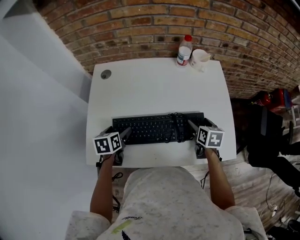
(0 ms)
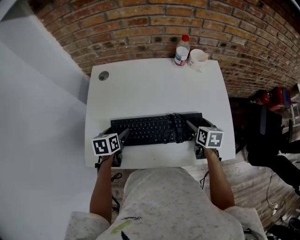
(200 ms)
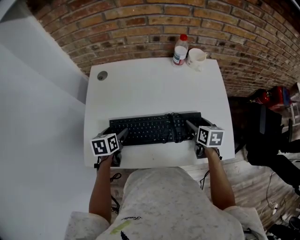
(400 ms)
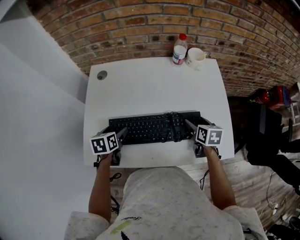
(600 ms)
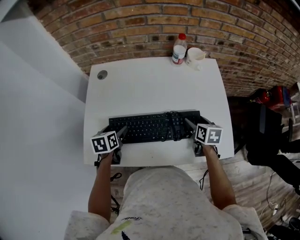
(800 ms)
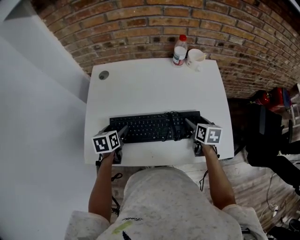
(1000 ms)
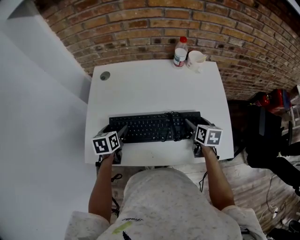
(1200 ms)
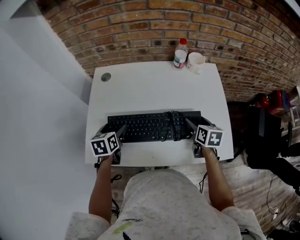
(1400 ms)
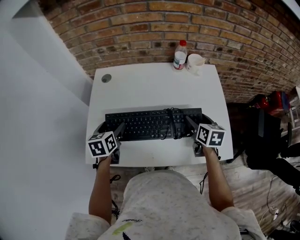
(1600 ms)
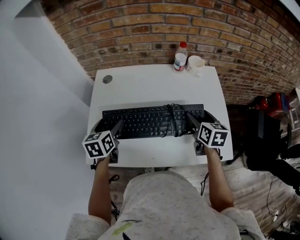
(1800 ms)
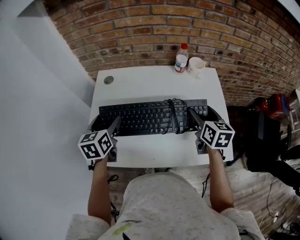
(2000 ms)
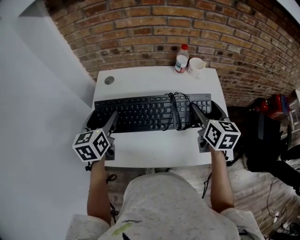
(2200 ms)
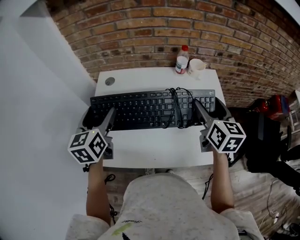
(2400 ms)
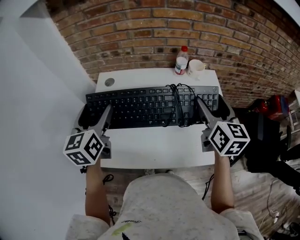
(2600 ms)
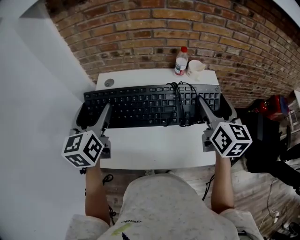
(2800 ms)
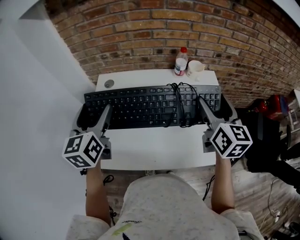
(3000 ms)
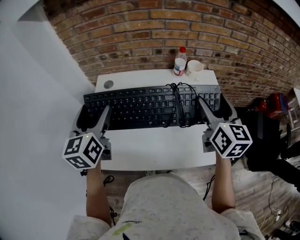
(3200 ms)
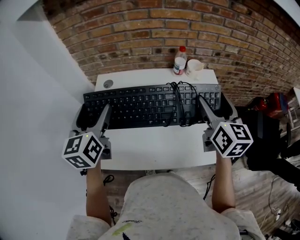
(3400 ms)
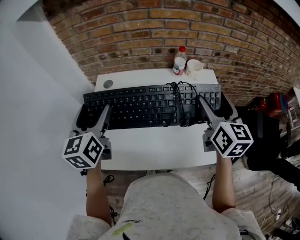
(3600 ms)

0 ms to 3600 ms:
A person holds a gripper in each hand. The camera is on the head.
0 ms to 1800 ms: The two grippers go about 10 cm upward.
1800 ms to 3600 ms: The grippers both shift upward by about 20 cm. The right gripper changes its angle by some 20 degrees. Meanwhile the left gripper turns by some 20 degrees.

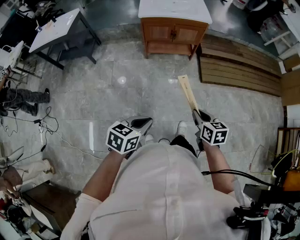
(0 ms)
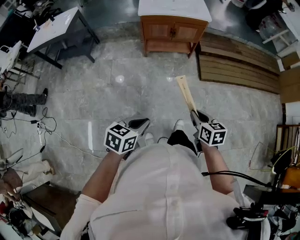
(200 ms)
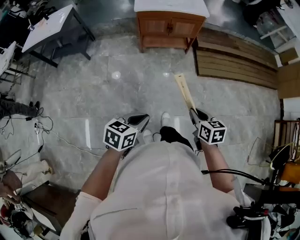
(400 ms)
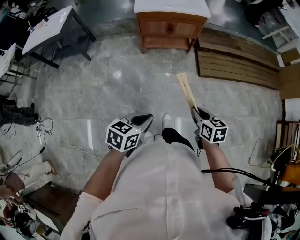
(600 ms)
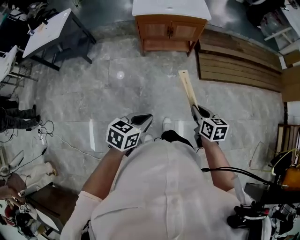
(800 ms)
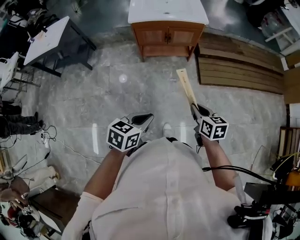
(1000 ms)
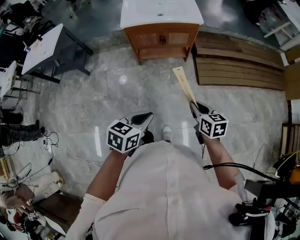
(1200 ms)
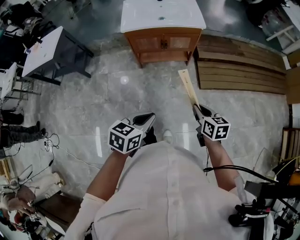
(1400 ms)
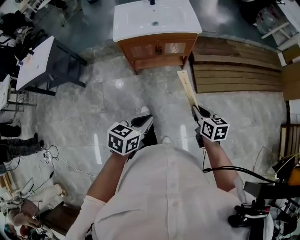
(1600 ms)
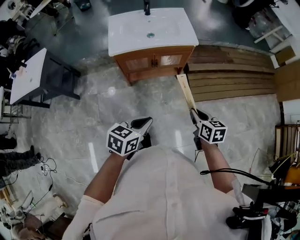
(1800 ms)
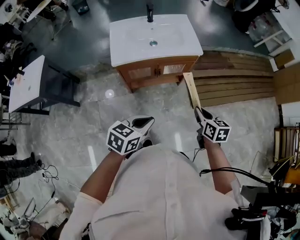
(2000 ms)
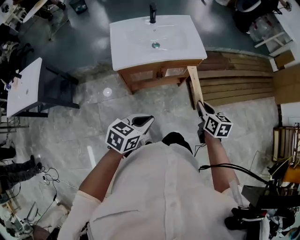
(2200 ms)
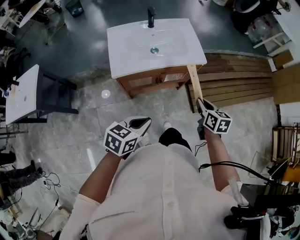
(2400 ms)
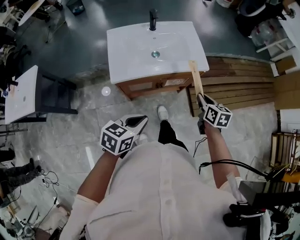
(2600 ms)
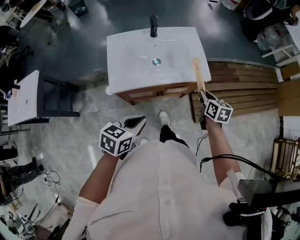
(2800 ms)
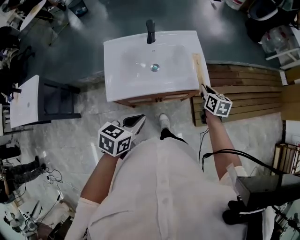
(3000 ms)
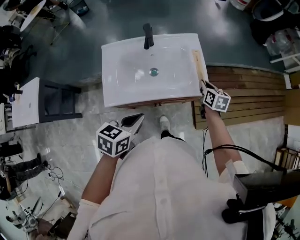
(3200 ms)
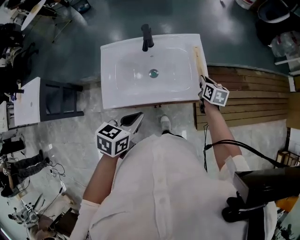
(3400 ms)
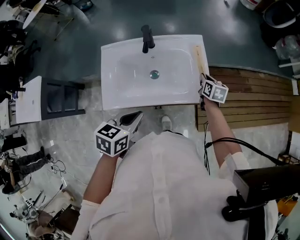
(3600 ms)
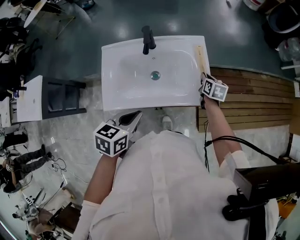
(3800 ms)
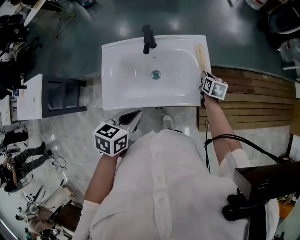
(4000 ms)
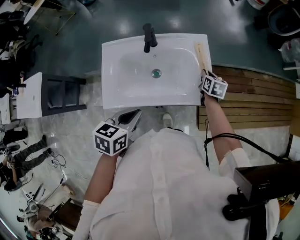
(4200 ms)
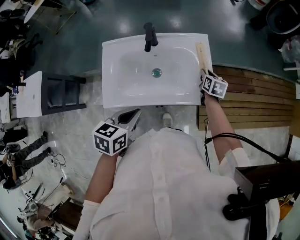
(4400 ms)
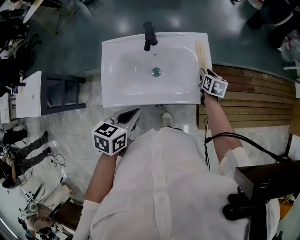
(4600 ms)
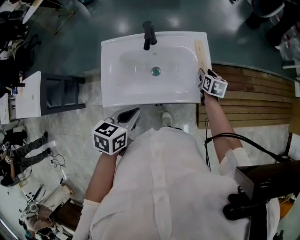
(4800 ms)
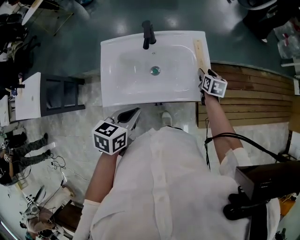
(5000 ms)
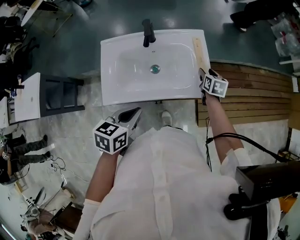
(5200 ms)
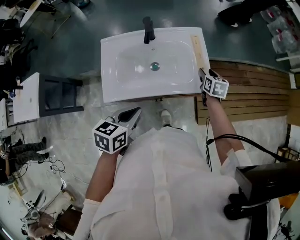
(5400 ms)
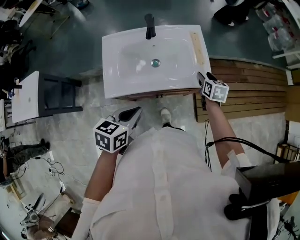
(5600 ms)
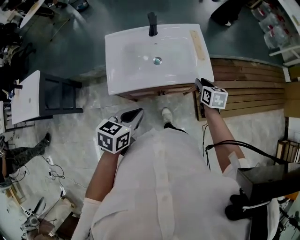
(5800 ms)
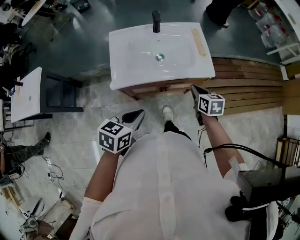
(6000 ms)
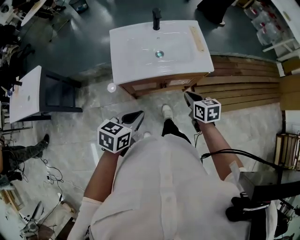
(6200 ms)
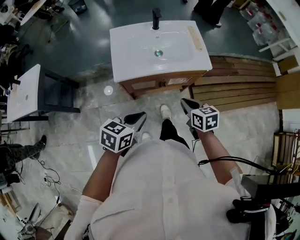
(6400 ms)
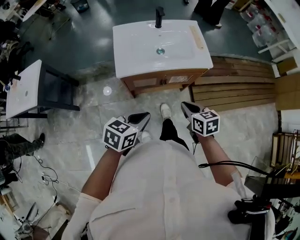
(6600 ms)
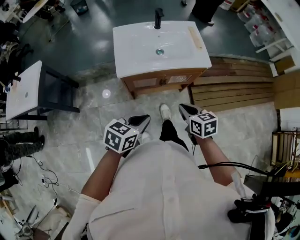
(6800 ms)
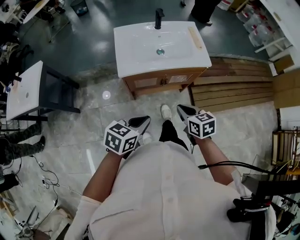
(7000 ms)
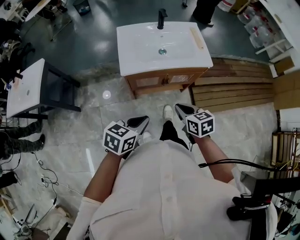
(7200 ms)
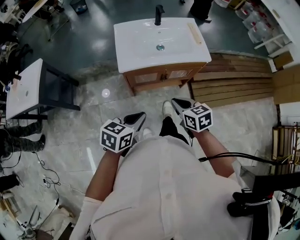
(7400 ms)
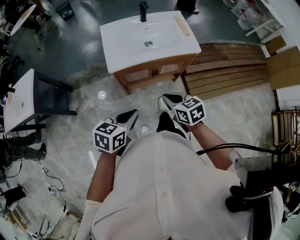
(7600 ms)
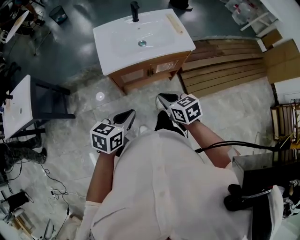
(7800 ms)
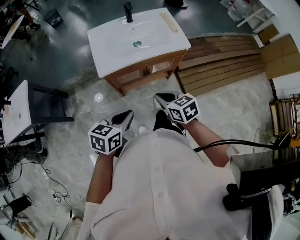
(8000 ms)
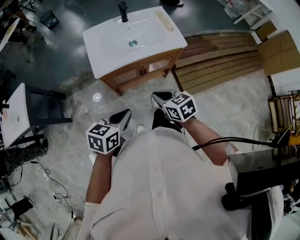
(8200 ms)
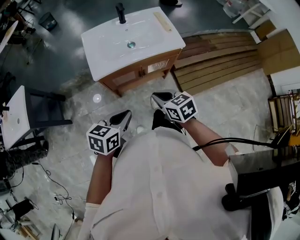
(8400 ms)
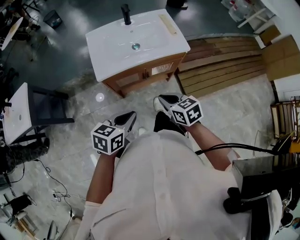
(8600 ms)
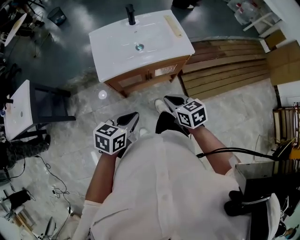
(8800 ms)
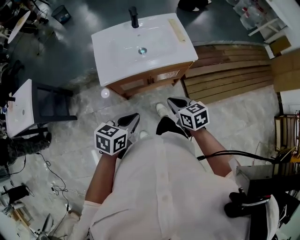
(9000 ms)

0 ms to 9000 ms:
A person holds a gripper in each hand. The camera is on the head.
0 ms to 1600 ms: Both grippers move forward, about 30 cm.
1600 ms to 3000 ms: The two grippers travel together, forward, approximately 50 cm.
3000 ms to 4400 ms: The right gripper shifts some 20 cm forward and downward, while the left gripper moves forward, roughly 10 cm.
4400 ms to 6000 ms: The right gripper moves backward, about 30 cm, and closes, while the left gripper moves backward, roughly 15 cm.
6000 ms to 7600 ms: The right gripper travels backward and to the left by about 25 cm. Meanwhile the left gripper goes approximately 15 cm backward.
7600 ms to 9000 ms: The left gripper goes about 10 cm forward and to the right, while the right gripper travels to the right and forward by some 10 cm.

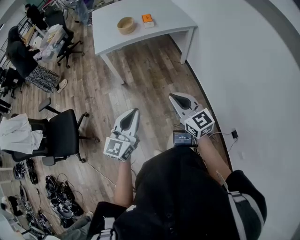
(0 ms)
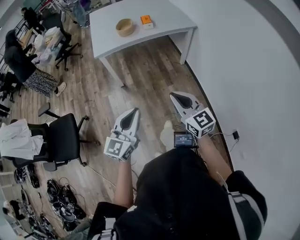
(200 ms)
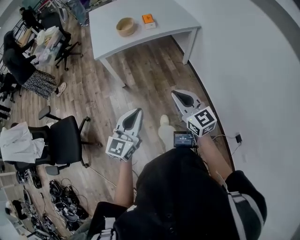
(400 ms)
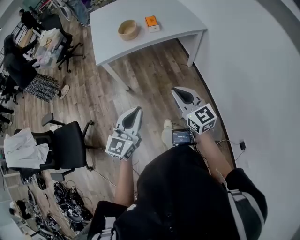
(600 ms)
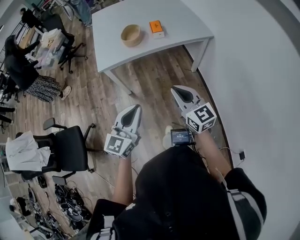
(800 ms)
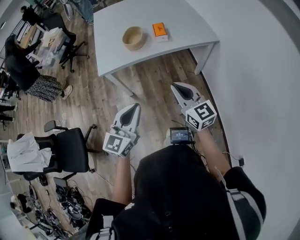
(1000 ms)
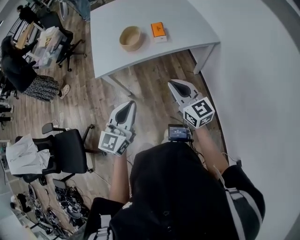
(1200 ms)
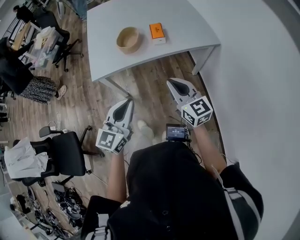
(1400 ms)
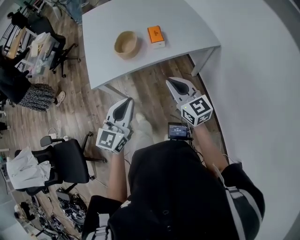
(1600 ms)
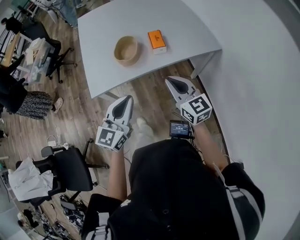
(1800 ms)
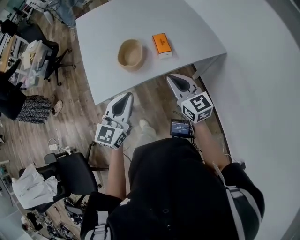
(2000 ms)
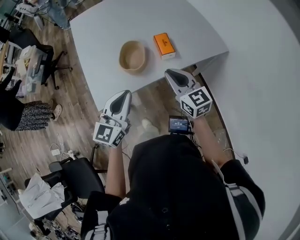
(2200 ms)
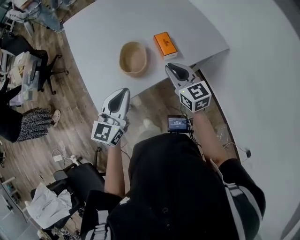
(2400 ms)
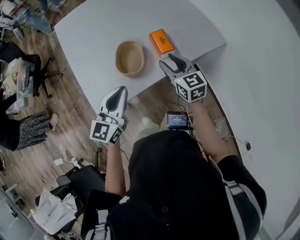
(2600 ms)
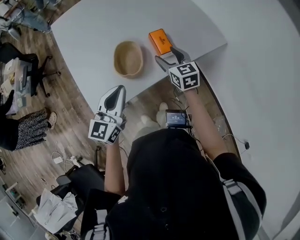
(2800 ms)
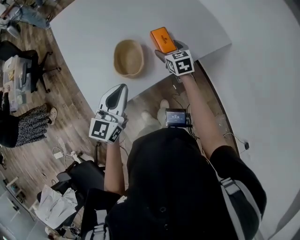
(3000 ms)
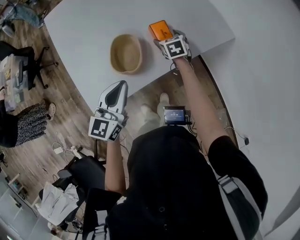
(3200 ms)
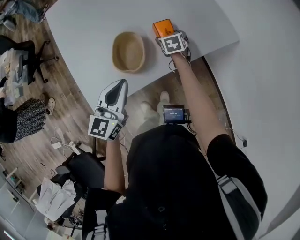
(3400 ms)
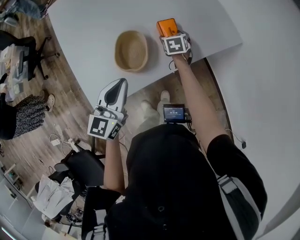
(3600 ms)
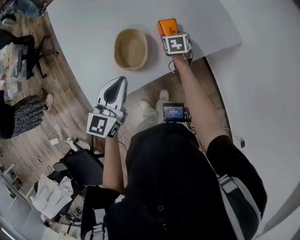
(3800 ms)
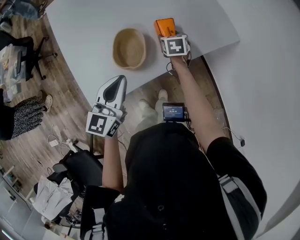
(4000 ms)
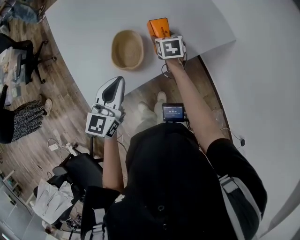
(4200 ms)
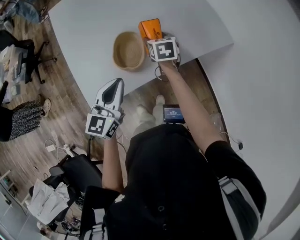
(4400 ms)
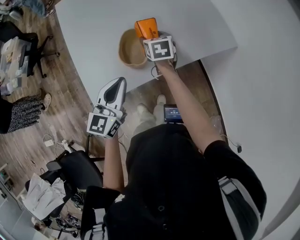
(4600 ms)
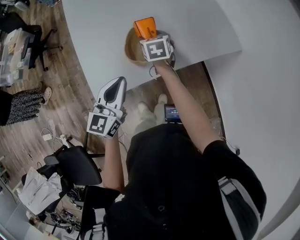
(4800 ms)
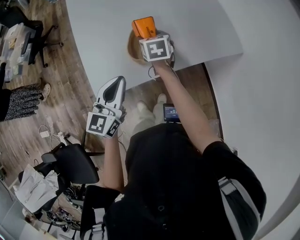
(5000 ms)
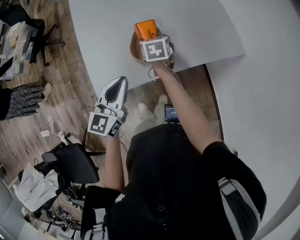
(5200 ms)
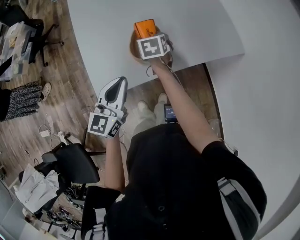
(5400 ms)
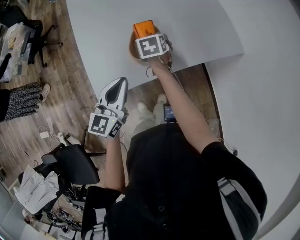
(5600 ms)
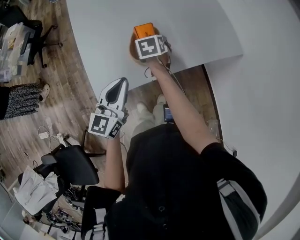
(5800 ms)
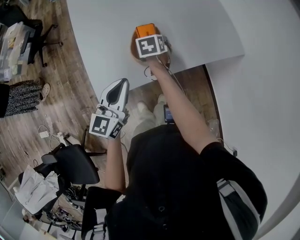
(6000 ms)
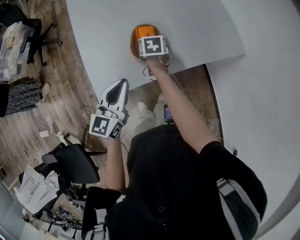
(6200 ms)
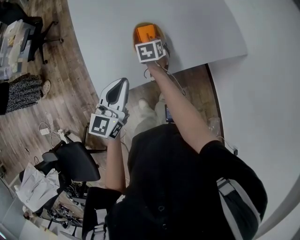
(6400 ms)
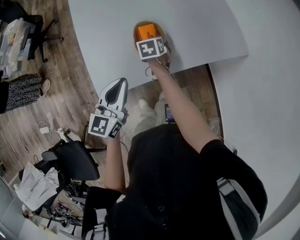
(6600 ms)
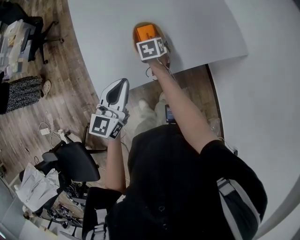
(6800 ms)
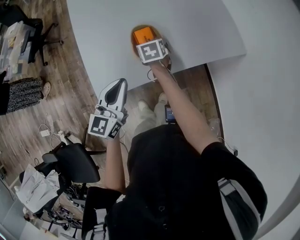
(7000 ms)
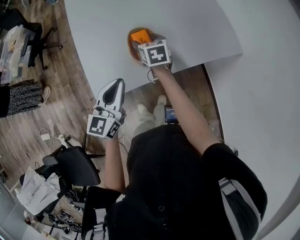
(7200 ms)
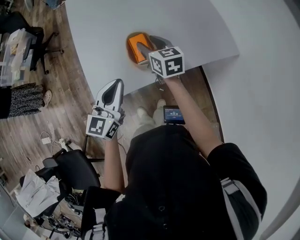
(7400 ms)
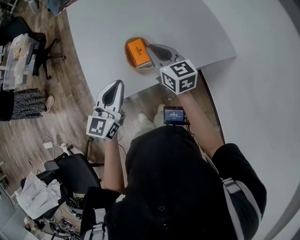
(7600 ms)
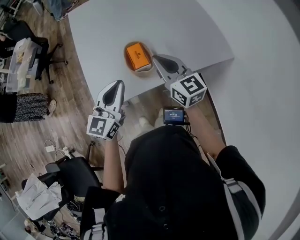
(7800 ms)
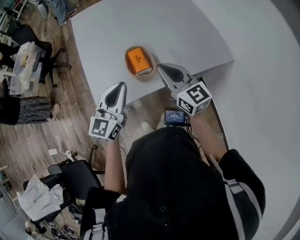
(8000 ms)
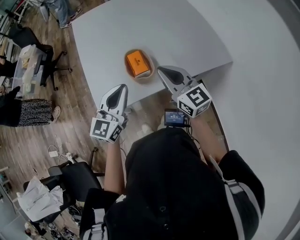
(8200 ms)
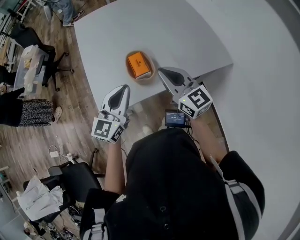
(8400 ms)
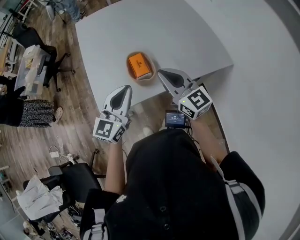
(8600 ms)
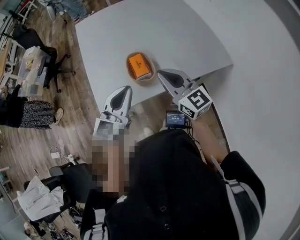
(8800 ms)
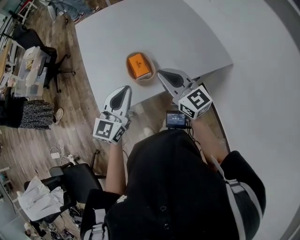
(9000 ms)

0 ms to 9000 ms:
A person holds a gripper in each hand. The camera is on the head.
0 ms to 1600 ms: The pair of grippers is taken forward, roughly 50 cm.
1600 ms to 3000 ms: The left gripper heads forward and to the left, covering about 30 cm, while the right gripper shifts some 40 cm forward and downward, tips its fingers downward by some 30 degrees, and opens.
3000 ms to 4400 ms: The right gripper heads to the left, covering roughly 5 cm, and reaches approximately 10 cm downward, then returns.
4400 ms to 6000 ms: The left gripper shifts roughly 5 cm to the left. Meanwhile the right gripper heads to the left, covering some 10 cm.
6000 ms to 7600 ms: The left gripper ends up some 5 cm from where it was; the right gripper travels upward by some 20 cm, tips its fingers upward by roughly 40 degrees, and closes.
7600 ms to 9000 ms: The right gripper moves backward and upward, roughly 10 cm. Meanwhile the left gripper changes place by some 5 cm.

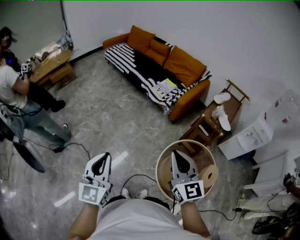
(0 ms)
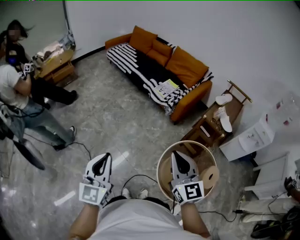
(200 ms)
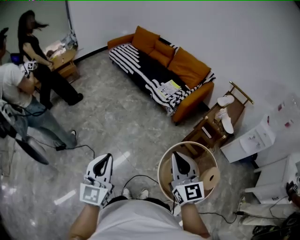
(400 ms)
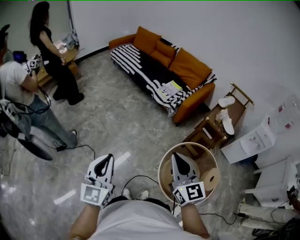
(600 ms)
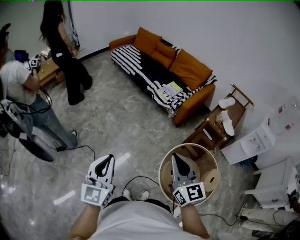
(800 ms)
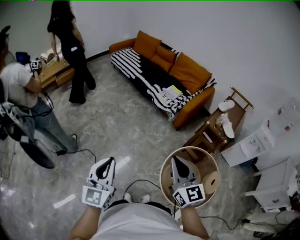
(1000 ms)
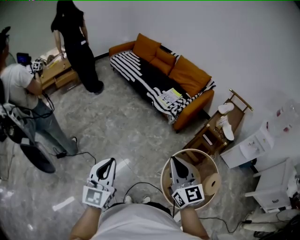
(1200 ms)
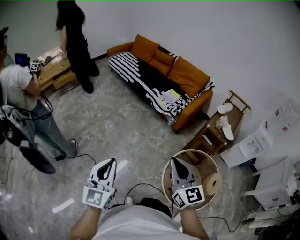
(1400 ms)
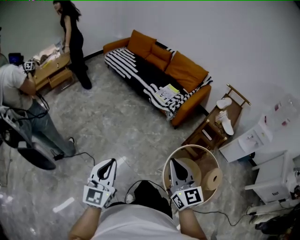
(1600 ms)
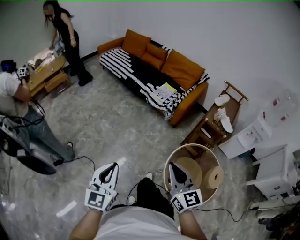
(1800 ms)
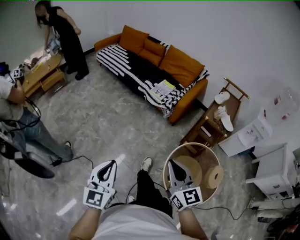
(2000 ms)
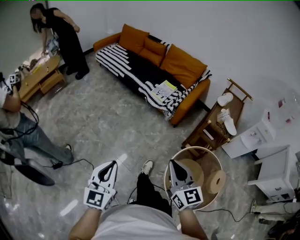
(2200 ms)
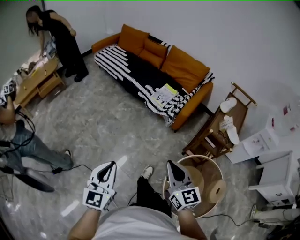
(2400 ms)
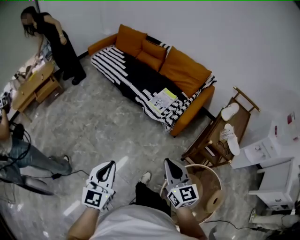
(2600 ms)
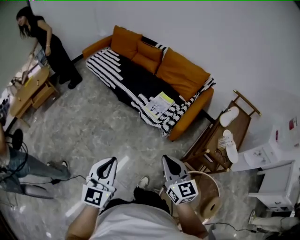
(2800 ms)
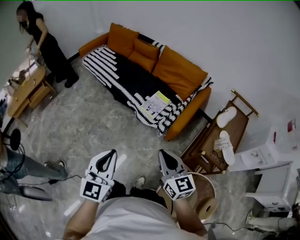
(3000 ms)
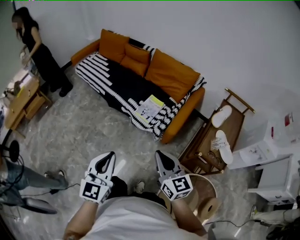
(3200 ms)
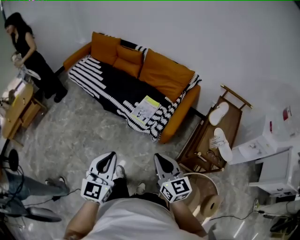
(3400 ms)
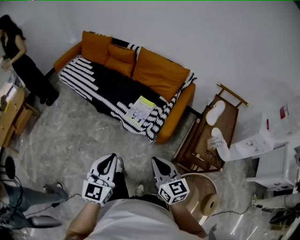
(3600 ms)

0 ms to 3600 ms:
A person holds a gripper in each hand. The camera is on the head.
0 ms to 1800 ms: The right gripper heads to the left, covering some 10 cm. The left gripper ends up approximately 5 cm from where it was.
1800 ms to 3600 ms: The two grippers travel together, forward, about 60 cm.
